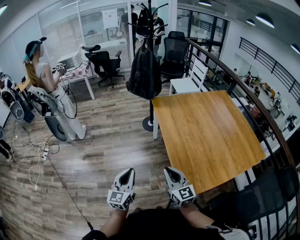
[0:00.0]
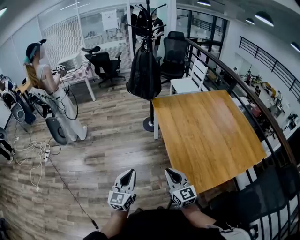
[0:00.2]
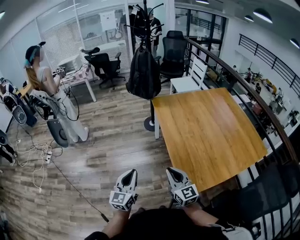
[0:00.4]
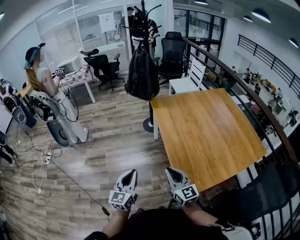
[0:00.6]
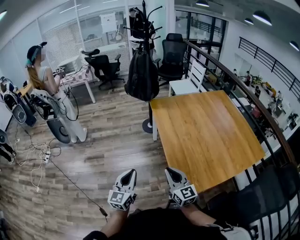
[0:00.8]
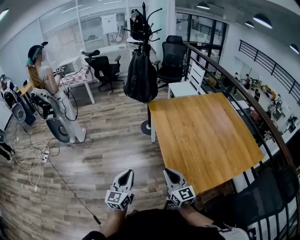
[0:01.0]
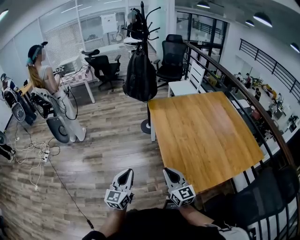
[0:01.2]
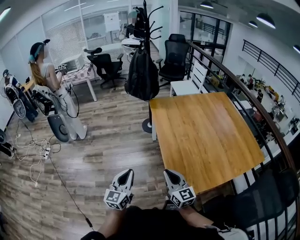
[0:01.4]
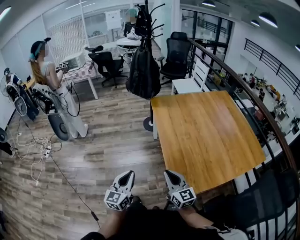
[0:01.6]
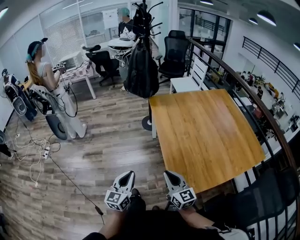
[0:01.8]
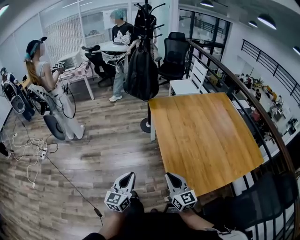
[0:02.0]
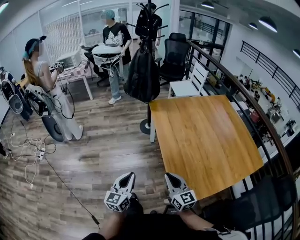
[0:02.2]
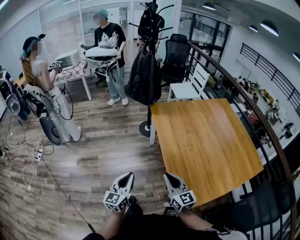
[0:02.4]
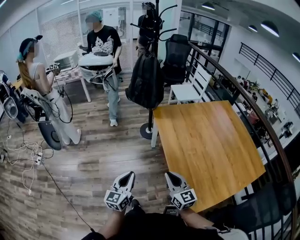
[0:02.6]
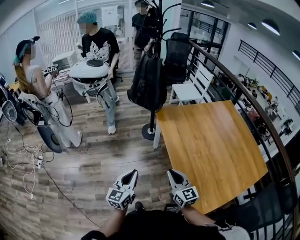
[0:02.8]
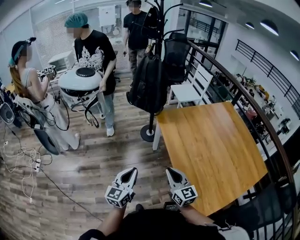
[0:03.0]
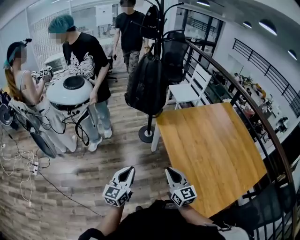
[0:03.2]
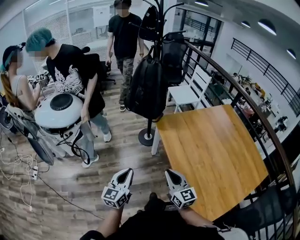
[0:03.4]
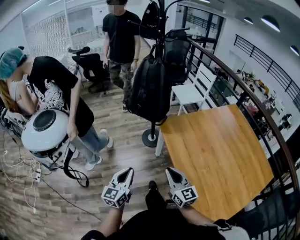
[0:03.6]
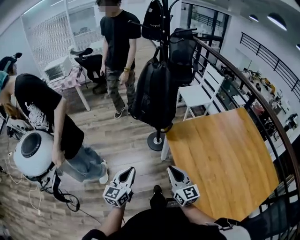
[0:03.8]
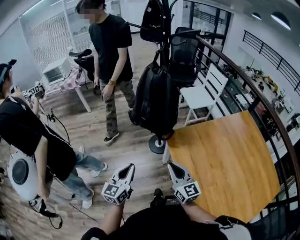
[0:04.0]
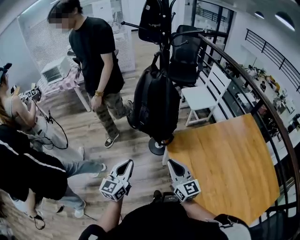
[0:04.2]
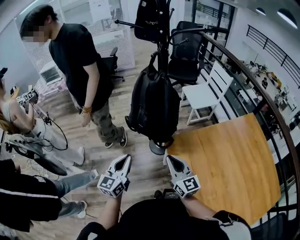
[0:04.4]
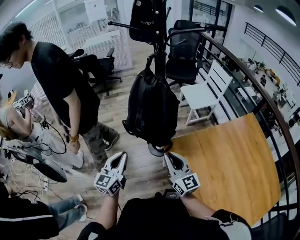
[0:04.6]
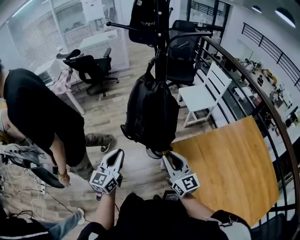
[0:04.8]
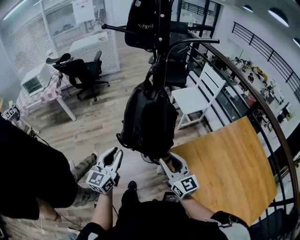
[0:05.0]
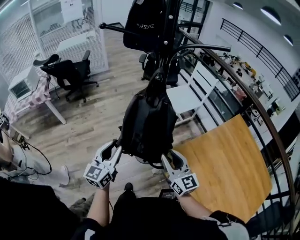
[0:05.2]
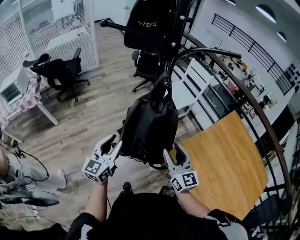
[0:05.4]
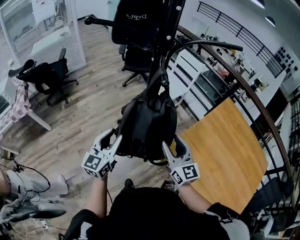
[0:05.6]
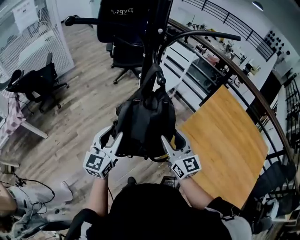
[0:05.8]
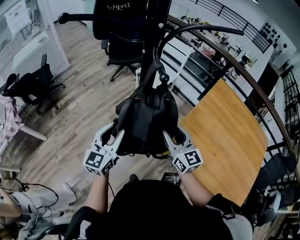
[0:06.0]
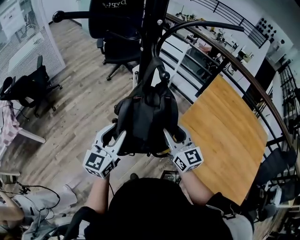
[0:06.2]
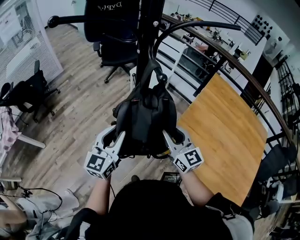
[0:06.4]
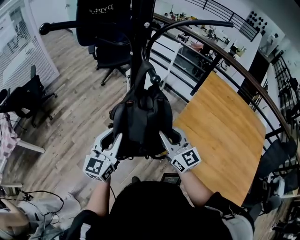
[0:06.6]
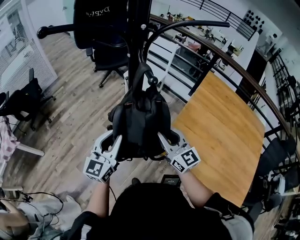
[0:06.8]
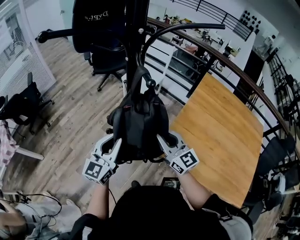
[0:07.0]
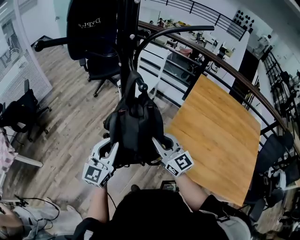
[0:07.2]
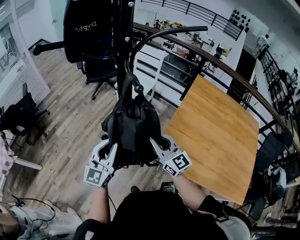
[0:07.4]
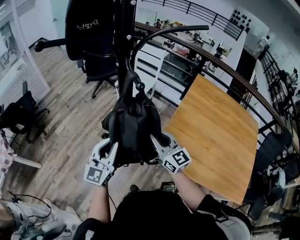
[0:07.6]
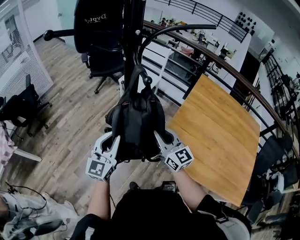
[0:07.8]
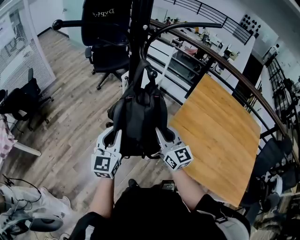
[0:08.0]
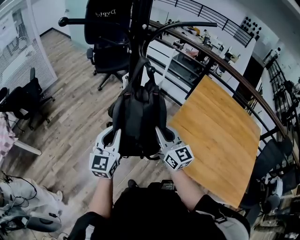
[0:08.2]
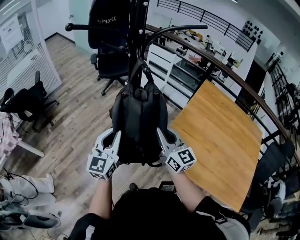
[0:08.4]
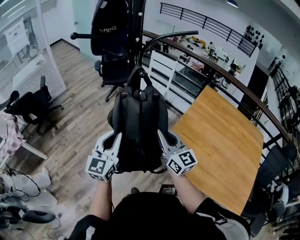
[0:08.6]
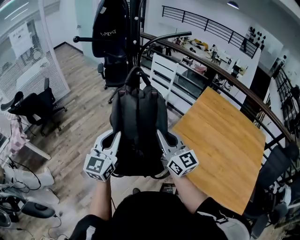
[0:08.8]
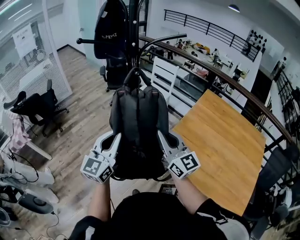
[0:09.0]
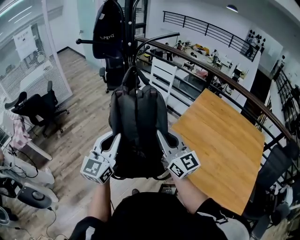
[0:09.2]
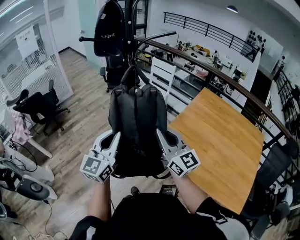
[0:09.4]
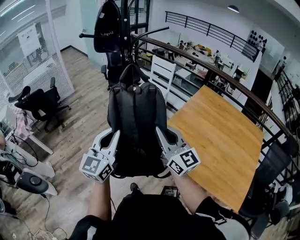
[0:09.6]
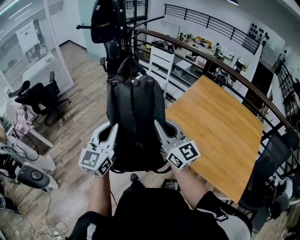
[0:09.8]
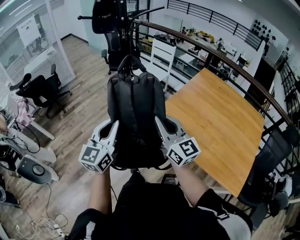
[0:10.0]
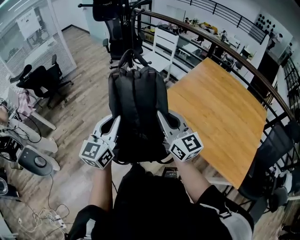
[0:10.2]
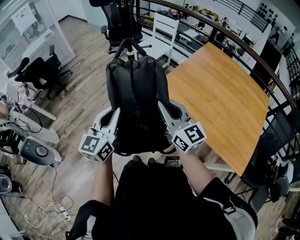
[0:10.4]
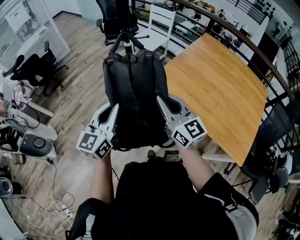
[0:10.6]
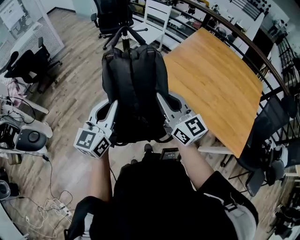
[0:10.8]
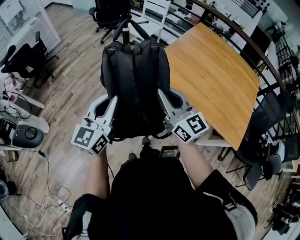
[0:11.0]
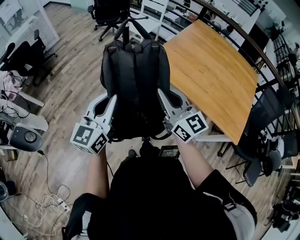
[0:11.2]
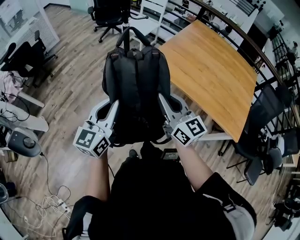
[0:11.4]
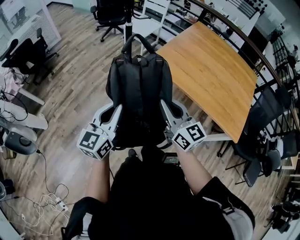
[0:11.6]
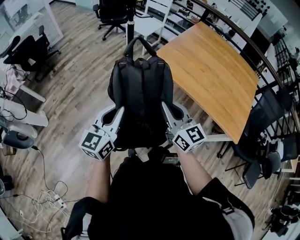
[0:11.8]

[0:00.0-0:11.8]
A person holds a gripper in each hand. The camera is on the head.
0:00.0 to 0:01.4: Both grippers move to the right, about 5 cm.
0:01.4 to 0:03.0: The grippers both shift forward and to the left by some 20 cm.
0:03.0 to 0:04.4: Both grippers move forward, roughly 35 cm.
0:04.4 to 0:06.0: The left gripper moves about 30 cm, turns by about 30 degrees, and opens up. Meanwhile the right gripper moves approximately 20 cm, swivels roughly 30 degrees, and opens its fingers.
0:06.0 to 0:07.4: The right gripper closes its fingers.
0:07.4 to 0:08.8: The two grippers go some 10 cm upward and backward.
0:08.8 to 0:10.4: Both grippers travel together backward, roughly 20 cm.
0:10.4 to 0:11.8: The grippers both shift backward by some 15 cm.

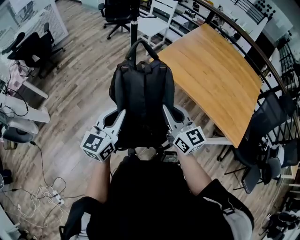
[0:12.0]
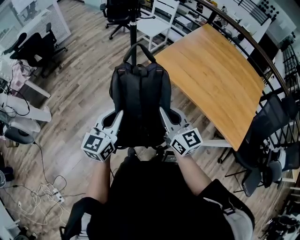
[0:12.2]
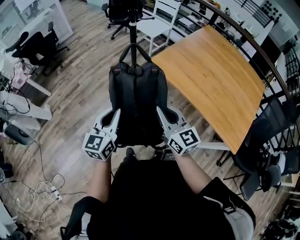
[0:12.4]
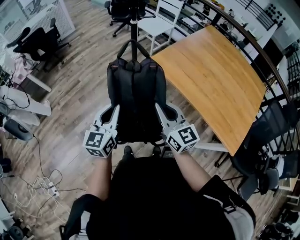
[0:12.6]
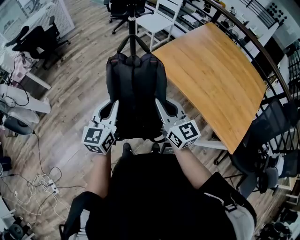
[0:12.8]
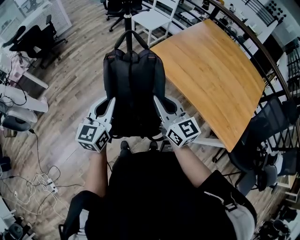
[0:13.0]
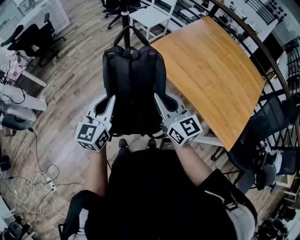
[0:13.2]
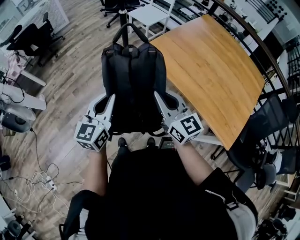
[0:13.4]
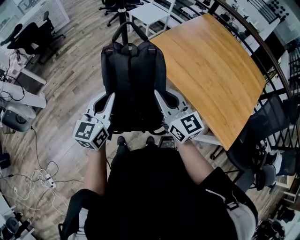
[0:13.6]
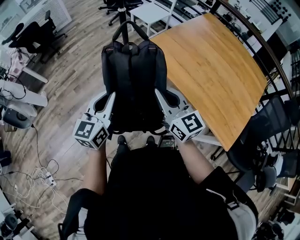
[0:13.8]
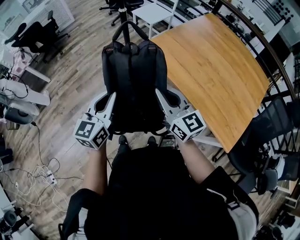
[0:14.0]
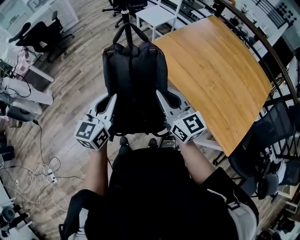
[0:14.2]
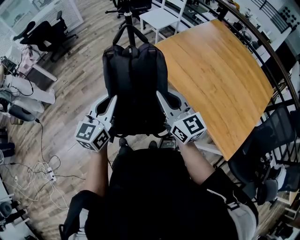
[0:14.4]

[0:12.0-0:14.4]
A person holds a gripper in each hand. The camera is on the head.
0:12.0 to 0:13.2: The two grippers go some 5 cm to the right.
0:13.2 to 0:14.4: Both grippers travel together to the right, roughly 5 cm.

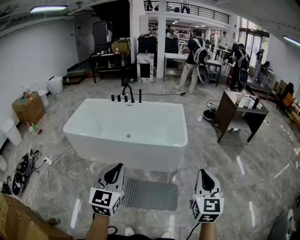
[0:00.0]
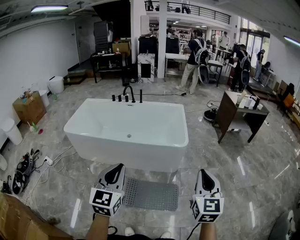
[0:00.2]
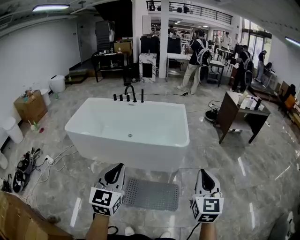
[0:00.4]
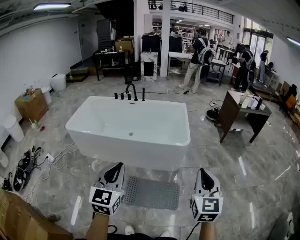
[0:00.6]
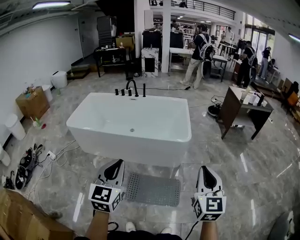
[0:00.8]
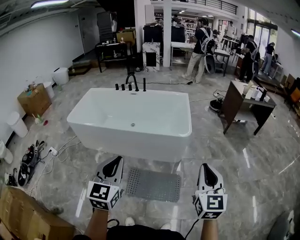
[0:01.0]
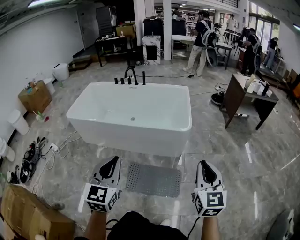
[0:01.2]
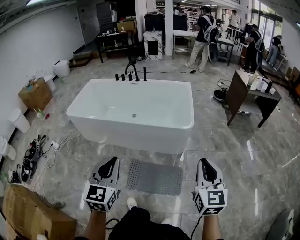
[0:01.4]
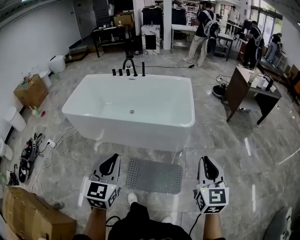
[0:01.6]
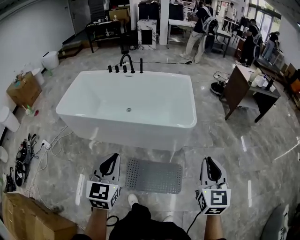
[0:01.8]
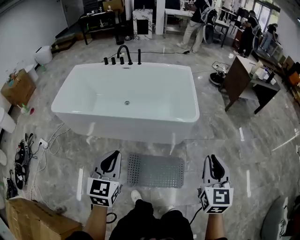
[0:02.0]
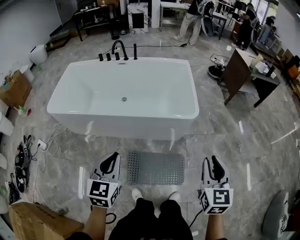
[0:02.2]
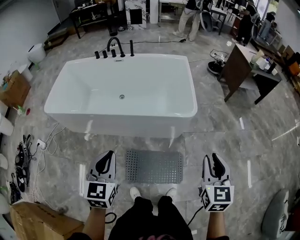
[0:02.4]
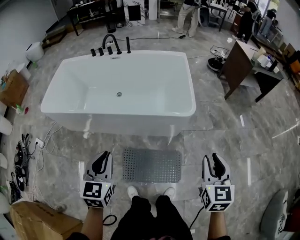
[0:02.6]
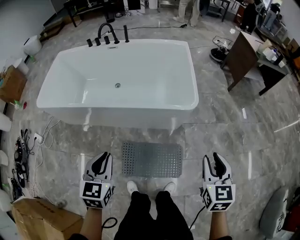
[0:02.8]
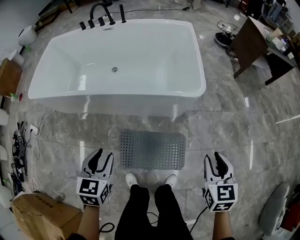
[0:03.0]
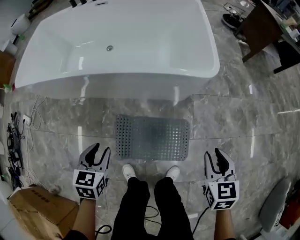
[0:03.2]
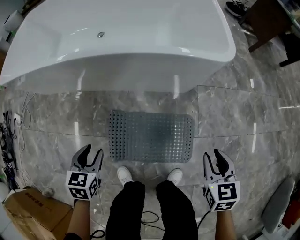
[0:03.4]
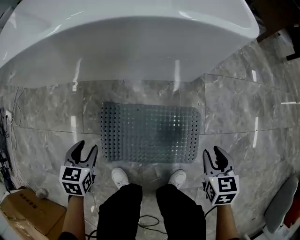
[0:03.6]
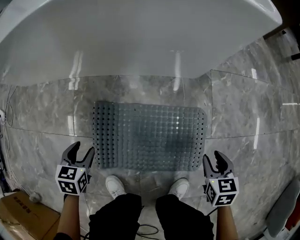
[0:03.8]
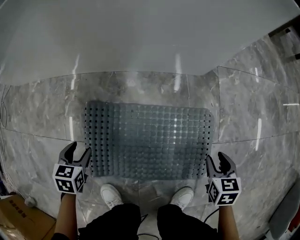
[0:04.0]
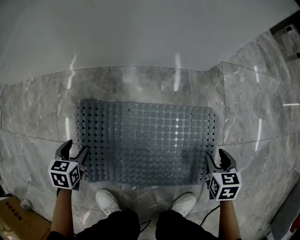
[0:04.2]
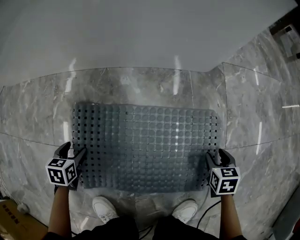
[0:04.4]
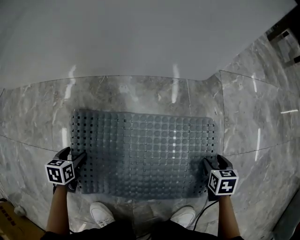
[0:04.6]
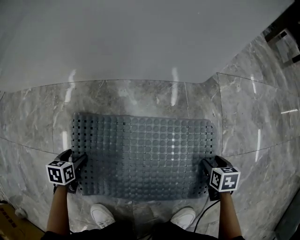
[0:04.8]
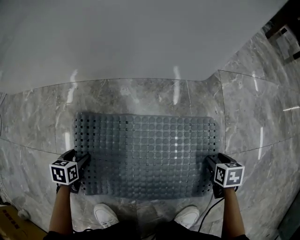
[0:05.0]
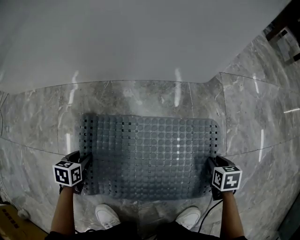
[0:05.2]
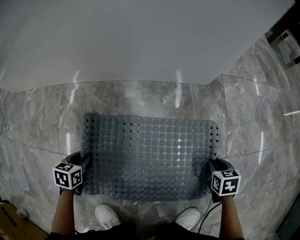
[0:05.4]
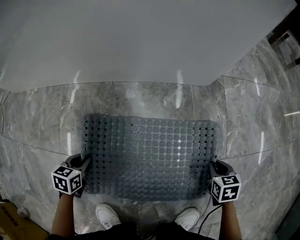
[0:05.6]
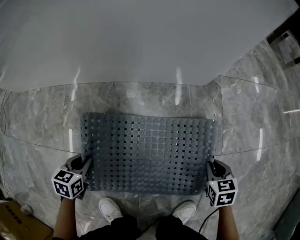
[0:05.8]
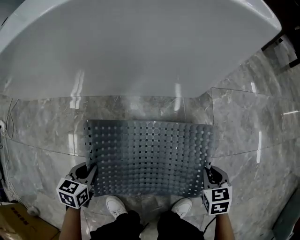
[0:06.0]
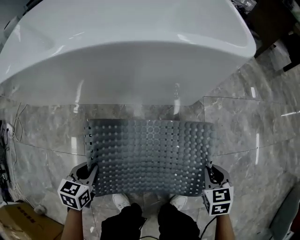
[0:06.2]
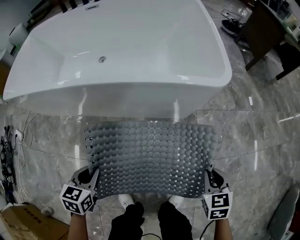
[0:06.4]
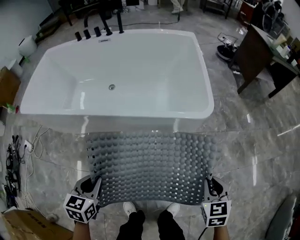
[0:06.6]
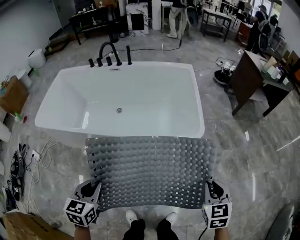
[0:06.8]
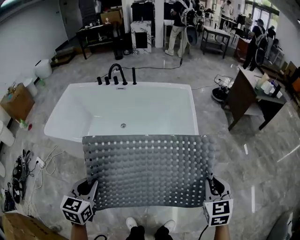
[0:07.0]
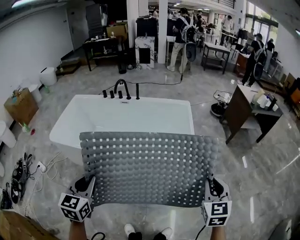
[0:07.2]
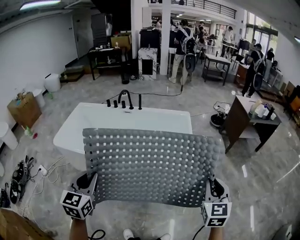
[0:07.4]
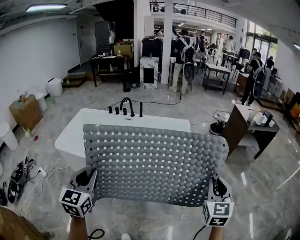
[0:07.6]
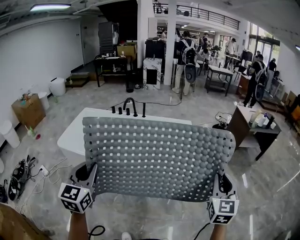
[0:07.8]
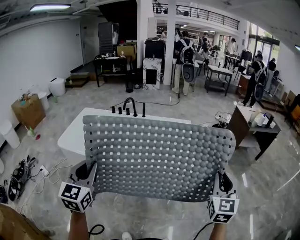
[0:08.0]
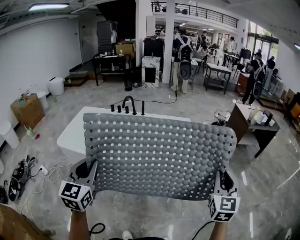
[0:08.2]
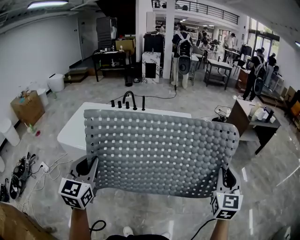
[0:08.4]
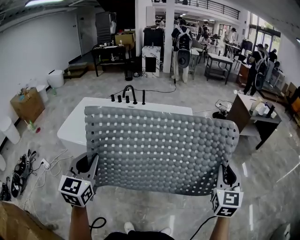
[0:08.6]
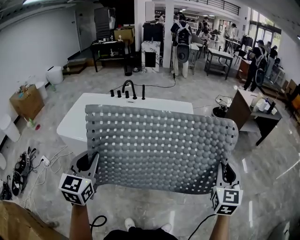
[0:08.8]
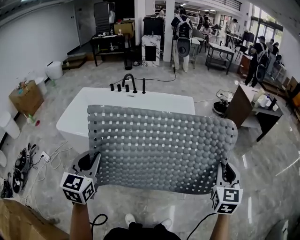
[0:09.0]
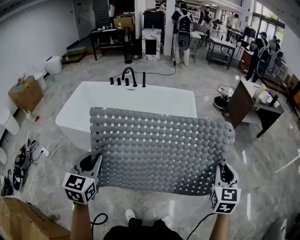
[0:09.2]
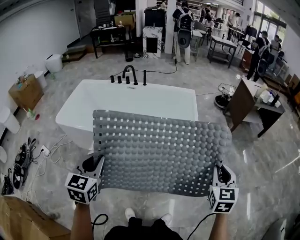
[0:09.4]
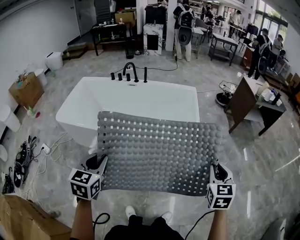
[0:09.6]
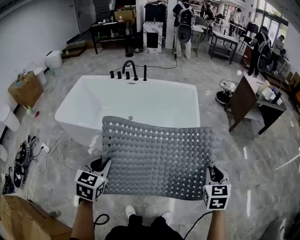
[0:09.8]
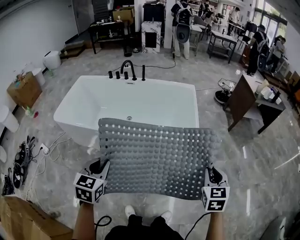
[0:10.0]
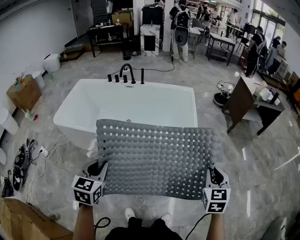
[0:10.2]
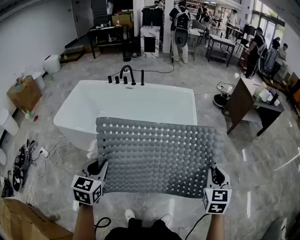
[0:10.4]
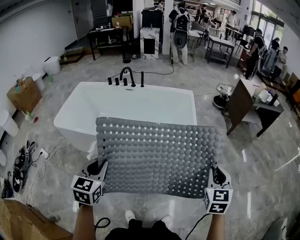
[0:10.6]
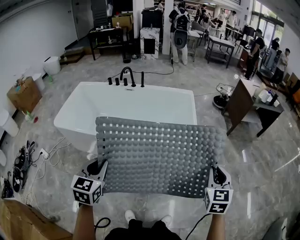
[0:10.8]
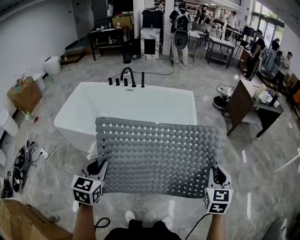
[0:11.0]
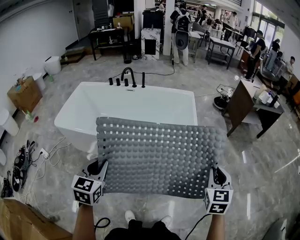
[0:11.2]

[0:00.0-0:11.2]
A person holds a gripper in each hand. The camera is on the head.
0:00.0 to 0:01.6: The right gripper moves forward and downward, roughly 10 cm, while the left gripper shifts approximately 10 cm downward and forward.
0:01.6 to 0:03.2: The grippers both shift downward by some 40 cm. The right gripper tilts its fingers roughly 30 degrees downward, and opens; the left gripper tilts its fingers some 30 degrees downward, and opens up.
0:03.2 to 0:04.8: The grippers both shift downward by some 60 cm. The right gripper rotates some 30 degrees, and opens its fingers. Meanwhile the left gripper rotates about 20 degrees, and opens its fingers.
0:04.8 to 0:06.4: Both grippers travel together upward, about 50 cm. The left gripper changes its angle by approximately 20 degrees, and closes up, while the right gripper swivels roughly 30 degrees, and closes its fingers.
0:06.4 to 0:08.0: The two grippers go approximately 70 cm upward. The right gripper tips its fingers upward by approximately 50 degrees. Meanwhile the left gripper angles its fingers upward, by about 40 degrees.
0:08.0 to 0:09.6: Both grippers travel together downward, about 15 cm. The right gripper swivels roughly 20 degrees. Meanwhile the left gripper swivels about 20 degrees.
0:09.6 to 0:11.2: The grippers stay close to where they were, moving slightly.
